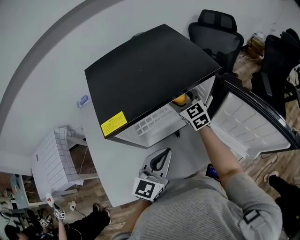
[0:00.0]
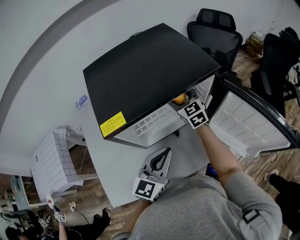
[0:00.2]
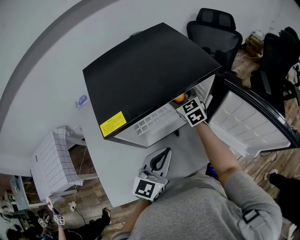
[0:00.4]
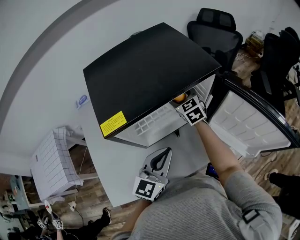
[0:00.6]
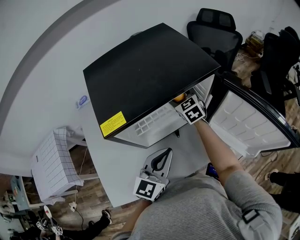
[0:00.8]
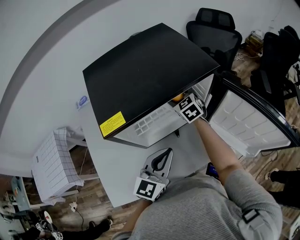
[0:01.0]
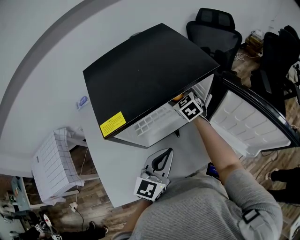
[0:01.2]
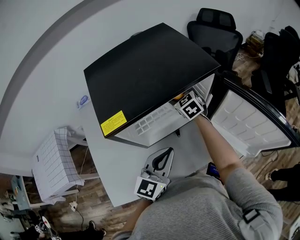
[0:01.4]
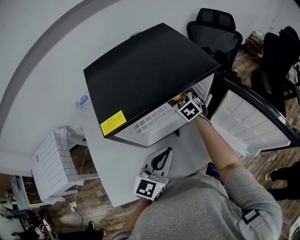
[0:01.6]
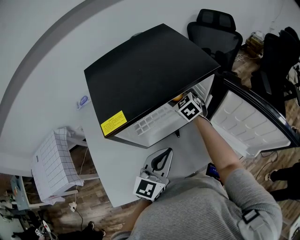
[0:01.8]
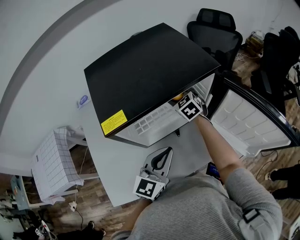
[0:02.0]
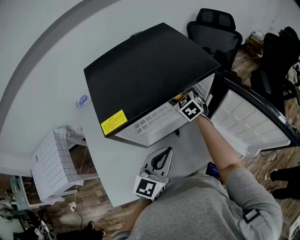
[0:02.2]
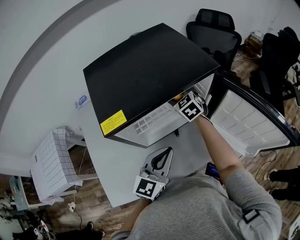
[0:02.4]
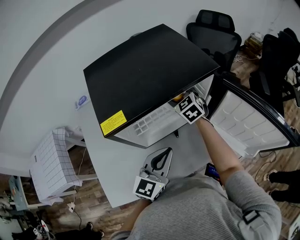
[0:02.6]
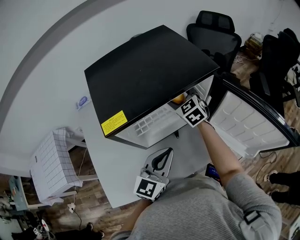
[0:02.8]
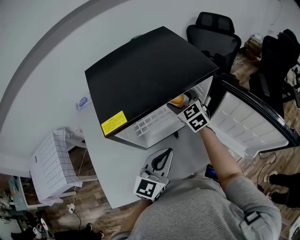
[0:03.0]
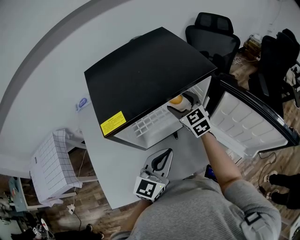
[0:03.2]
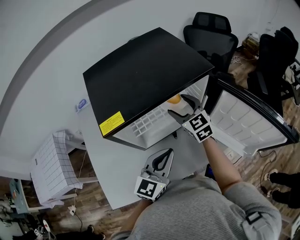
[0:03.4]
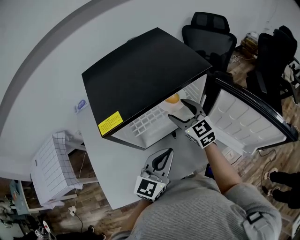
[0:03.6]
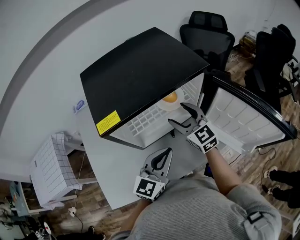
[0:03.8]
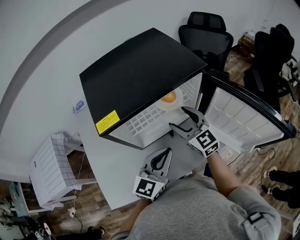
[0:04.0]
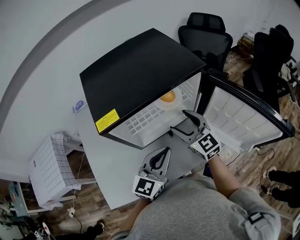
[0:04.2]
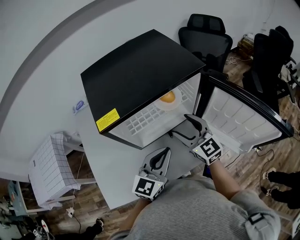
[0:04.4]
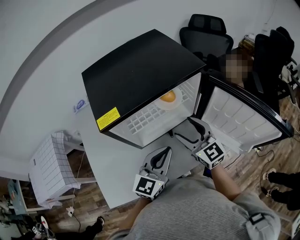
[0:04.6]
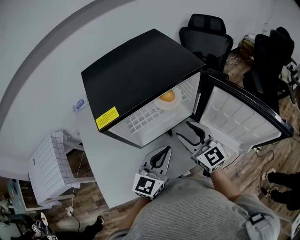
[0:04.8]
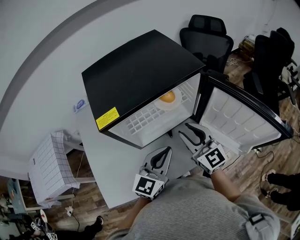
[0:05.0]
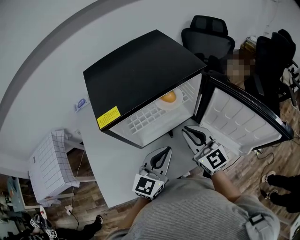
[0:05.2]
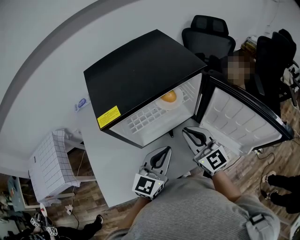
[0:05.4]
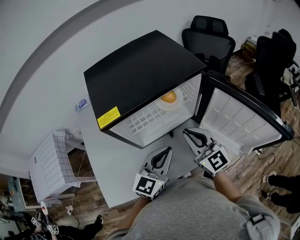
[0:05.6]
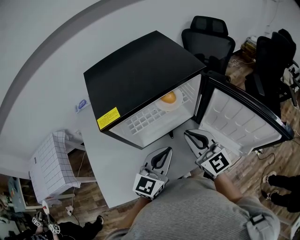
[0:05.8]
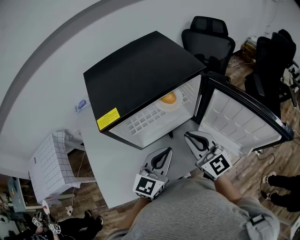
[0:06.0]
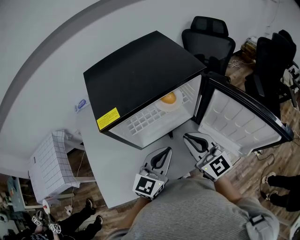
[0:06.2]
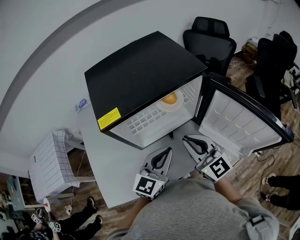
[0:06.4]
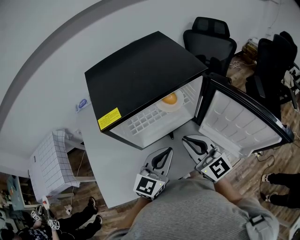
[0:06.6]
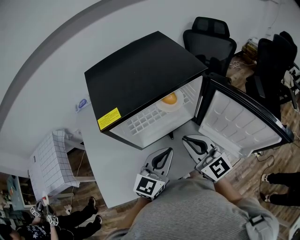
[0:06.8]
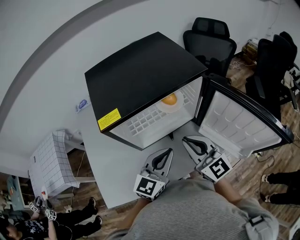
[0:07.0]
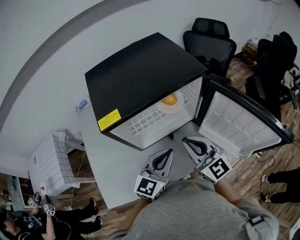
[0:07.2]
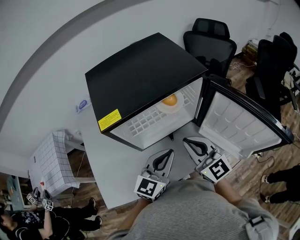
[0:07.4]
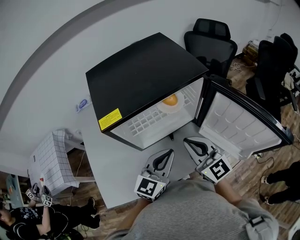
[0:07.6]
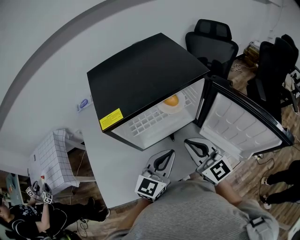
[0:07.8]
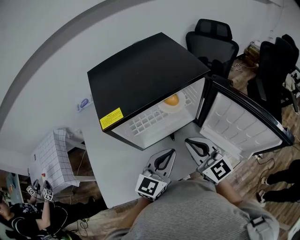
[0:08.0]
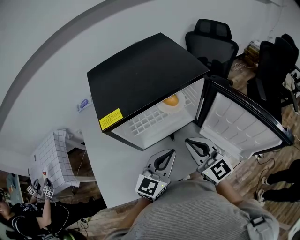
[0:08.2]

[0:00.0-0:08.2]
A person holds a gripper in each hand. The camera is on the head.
0:00.0 to 0:01.6: The right gripper changes place by approximately 5 cm.
0:01.6 to 0:03.2: The right gripper shifts some 10 cm upward and backward.
0:03.2 to 0:05.0: The right gripper is displaced backward by roughly 15 cm, rotates roughly 20 degrees, and closes its fingers.
0:05.0 to 0:06.6: The right gripper closes its fingers.
0:06.6 to 0:08.2: Both grippers stay about where they are.

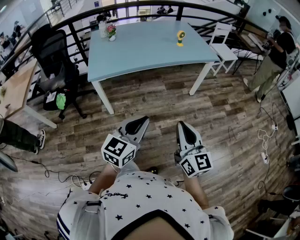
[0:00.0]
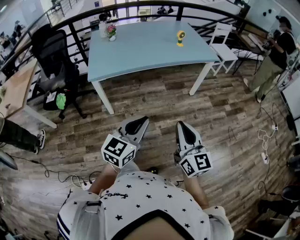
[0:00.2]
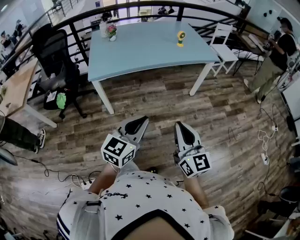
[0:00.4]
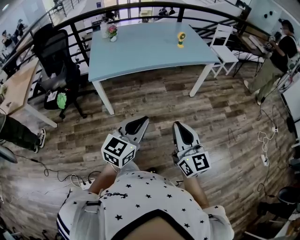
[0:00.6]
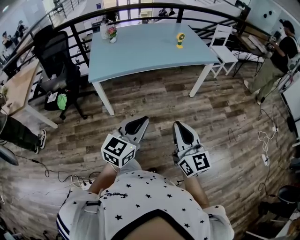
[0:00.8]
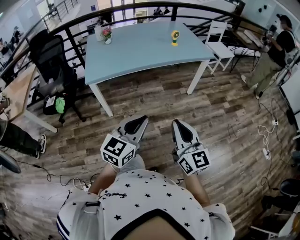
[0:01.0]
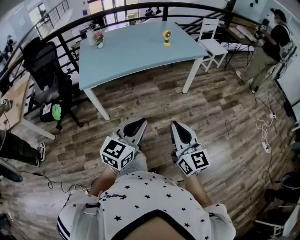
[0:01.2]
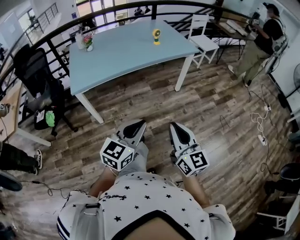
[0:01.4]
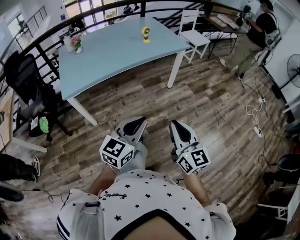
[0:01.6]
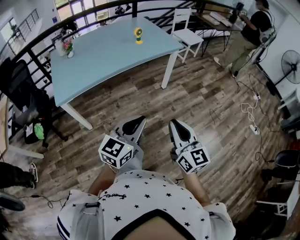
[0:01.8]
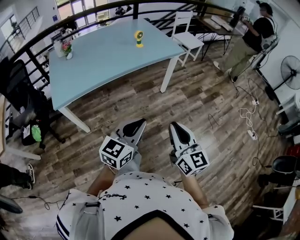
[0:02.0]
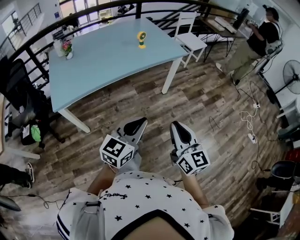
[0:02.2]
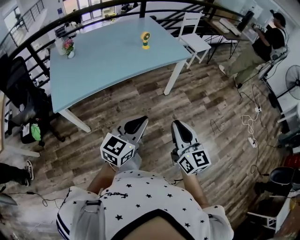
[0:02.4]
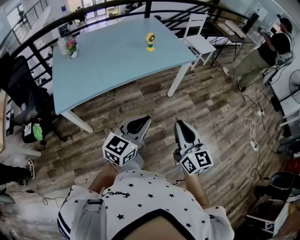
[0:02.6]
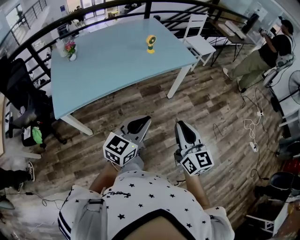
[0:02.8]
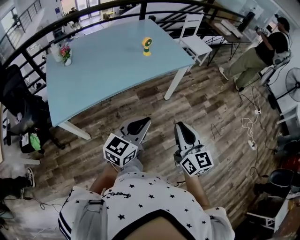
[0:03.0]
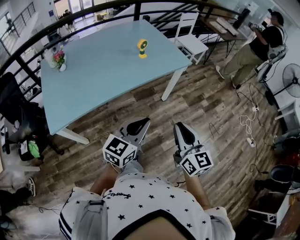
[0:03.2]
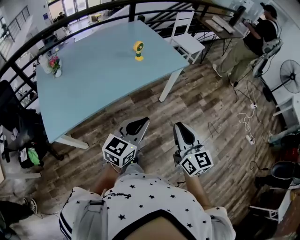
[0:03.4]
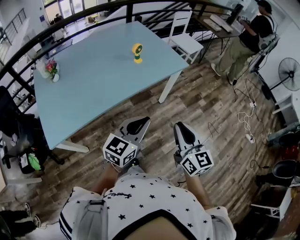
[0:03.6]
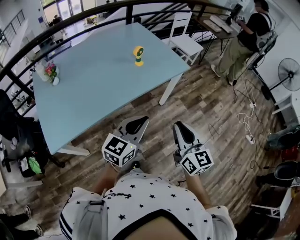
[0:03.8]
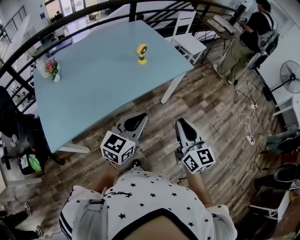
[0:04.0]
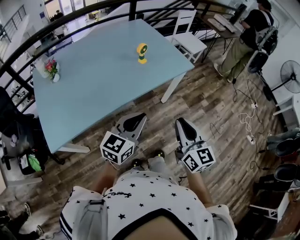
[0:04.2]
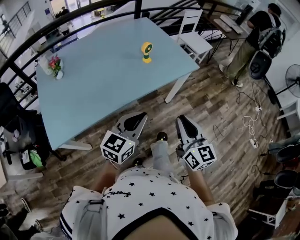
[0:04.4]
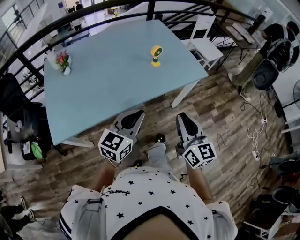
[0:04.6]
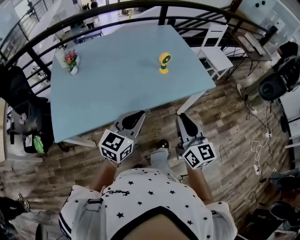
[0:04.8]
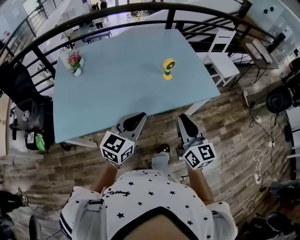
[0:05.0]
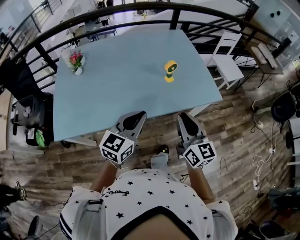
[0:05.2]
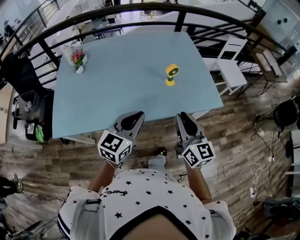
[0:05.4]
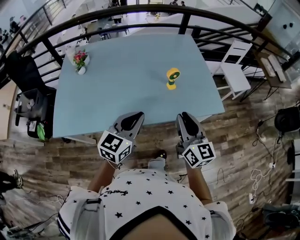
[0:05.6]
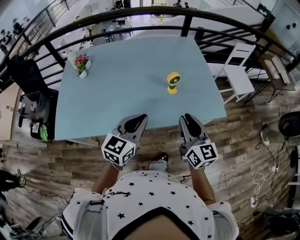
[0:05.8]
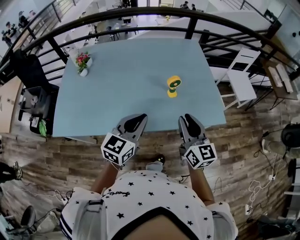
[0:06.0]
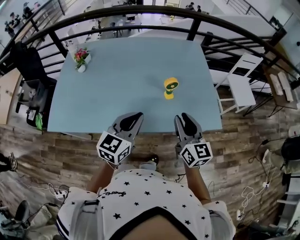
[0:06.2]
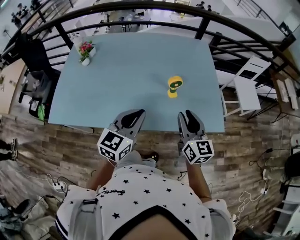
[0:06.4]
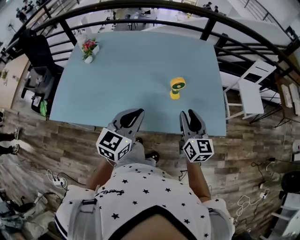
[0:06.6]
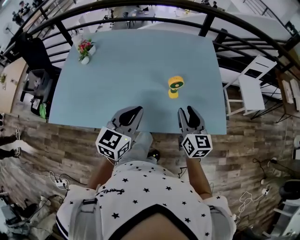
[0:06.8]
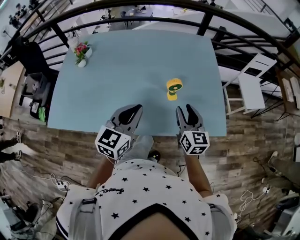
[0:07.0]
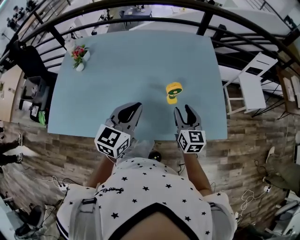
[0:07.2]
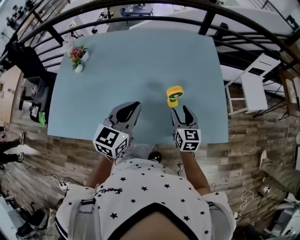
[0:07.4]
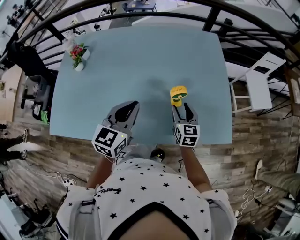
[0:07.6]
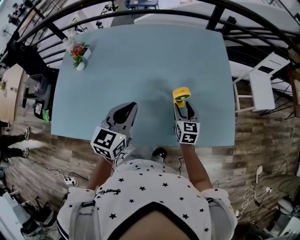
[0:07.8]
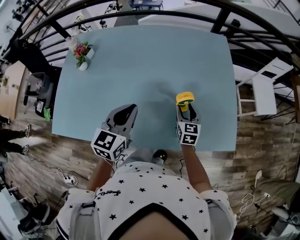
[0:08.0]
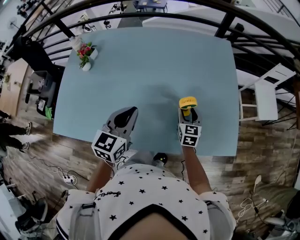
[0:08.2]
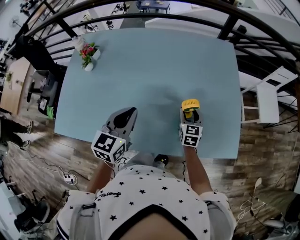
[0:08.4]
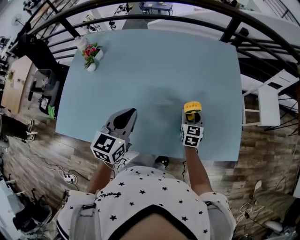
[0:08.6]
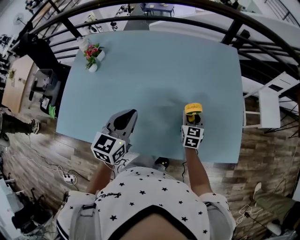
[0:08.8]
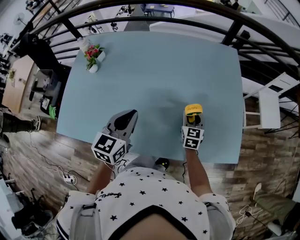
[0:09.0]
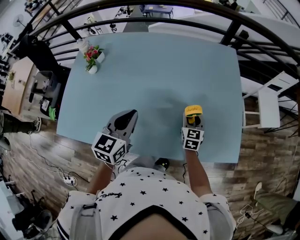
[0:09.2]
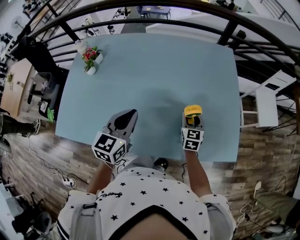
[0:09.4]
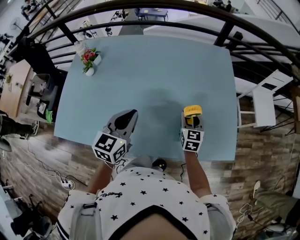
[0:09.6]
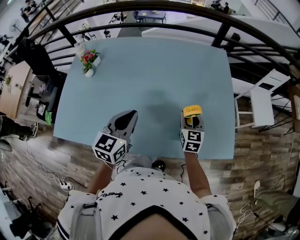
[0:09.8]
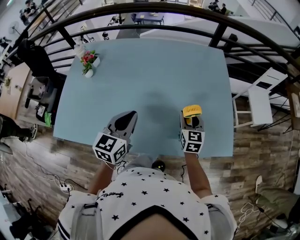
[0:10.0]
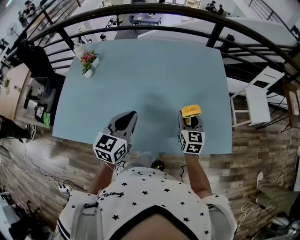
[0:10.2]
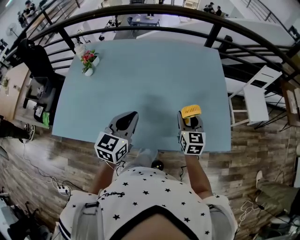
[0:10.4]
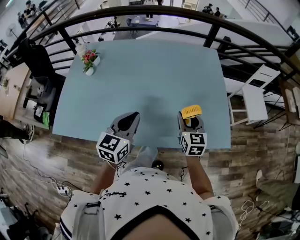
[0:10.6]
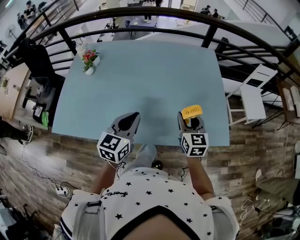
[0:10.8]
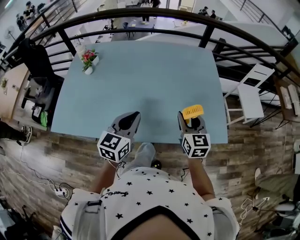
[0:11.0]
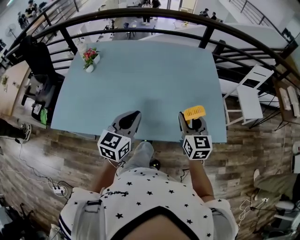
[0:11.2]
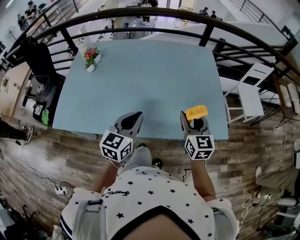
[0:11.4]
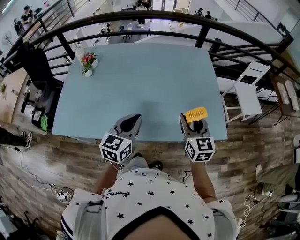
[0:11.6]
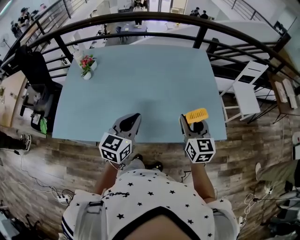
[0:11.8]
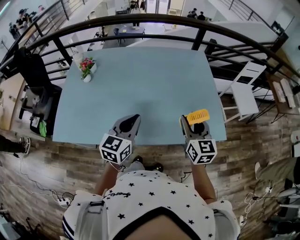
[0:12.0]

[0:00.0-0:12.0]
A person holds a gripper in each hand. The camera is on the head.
0:00.0 to 0:01.6: Both grippers travel together to the right, roughly 10 cm.
0:01.6 to 0:03.0: Both grippers move forward, some 20 cm.
0:03.0 to 0:04.4: The right gripper travels forward by approximately 15 cm, while the left gripper moves forward and to the left, about 15 cm.
0:04.4 to 0:06.0: The right gripper shifts by about 30 cm, and turns by about 20 degrees; the left gripper changes place by about 20 cm, and rotates about 30 degrees.
0:06.0 to 0:07.6: The left gripper travels forward by some 15 cm; the right gripper shifts approximately 25 cm forward and downward, rotates some 20 degrees, and opens.
0:07.6 to 0:09.0: The left gripper shifts about 5 cm to the left. The right gripper is displaced forward by roughly 5 cm.
0:09.0 to 0:10.4: The left gripper changes place by roughly 5 cm, while the right gripper is displaced upward and backward by roughly 15 cm.
0:10.4 to 0:12.0: The right gripper is displaced upward and backward by some 15 cm.

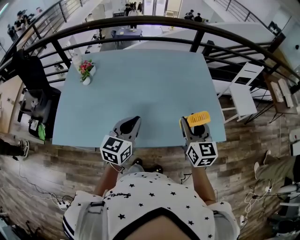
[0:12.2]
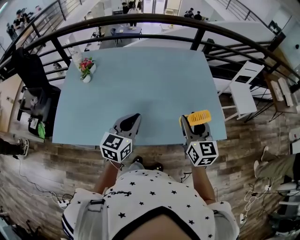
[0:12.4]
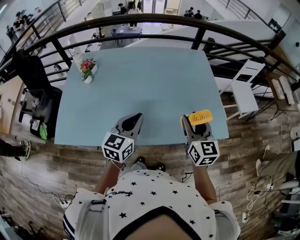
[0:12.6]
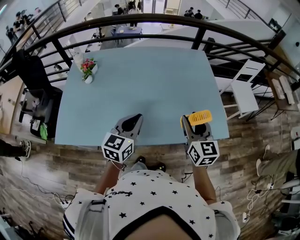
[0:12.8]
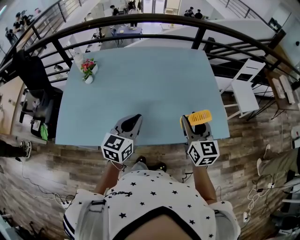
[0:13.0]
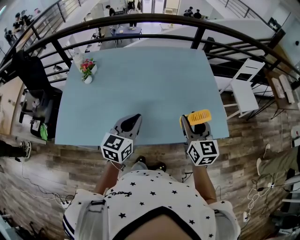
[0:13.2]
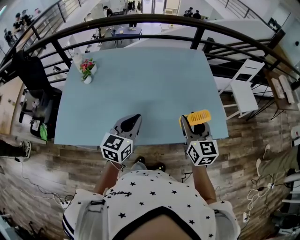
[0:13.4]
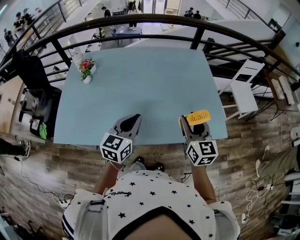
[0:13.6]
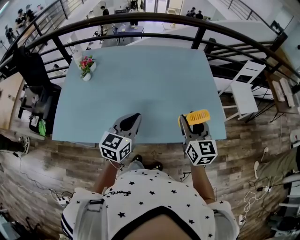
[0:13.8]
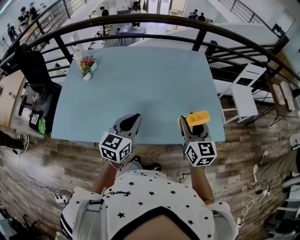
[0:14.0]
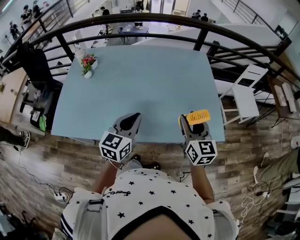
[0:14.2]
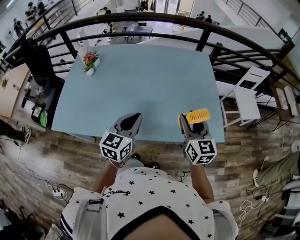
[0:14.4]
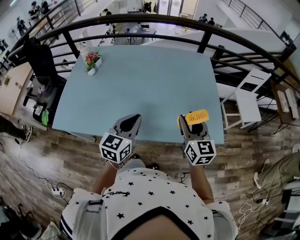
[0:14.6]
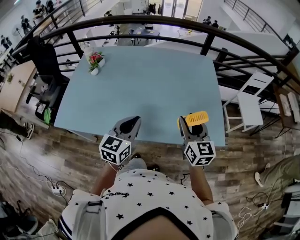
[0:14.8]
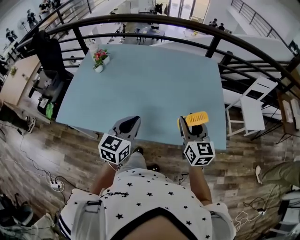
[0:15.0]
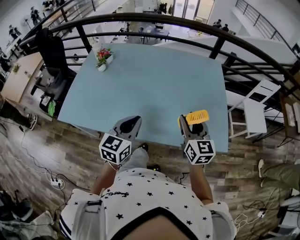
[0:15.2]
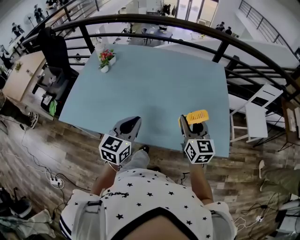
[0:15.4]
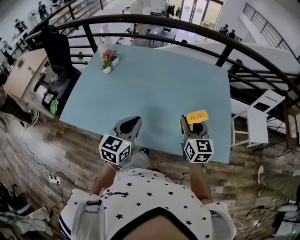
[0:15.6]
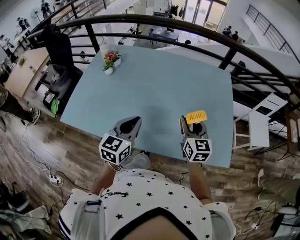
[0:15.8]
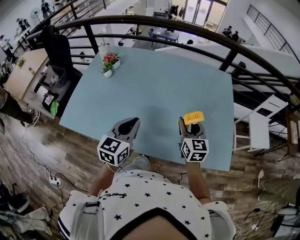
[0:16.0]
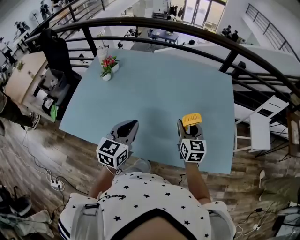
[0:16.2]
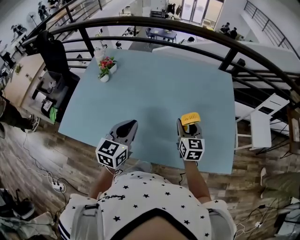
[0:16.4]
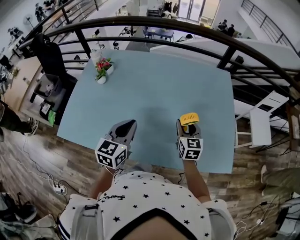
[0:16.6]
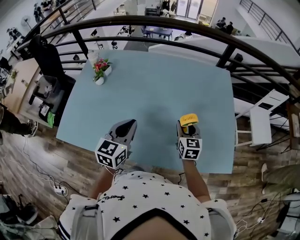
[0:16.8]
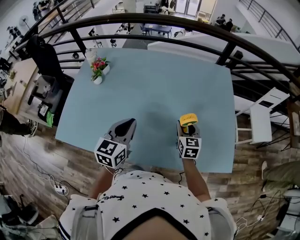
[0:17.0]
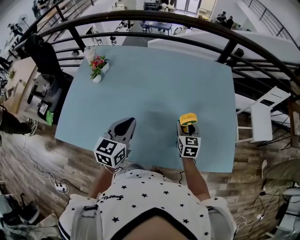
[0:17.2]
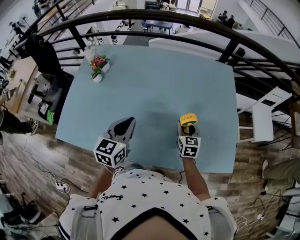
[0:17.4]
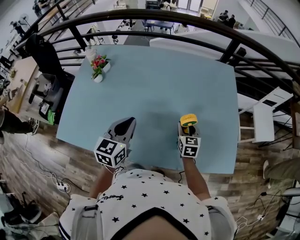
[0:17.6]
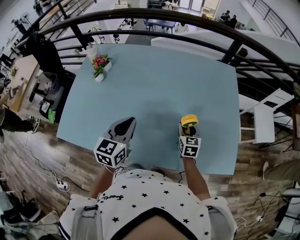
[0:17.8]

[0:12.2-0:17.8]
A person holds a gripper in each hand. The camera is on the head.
0:12.2 to 0:15.0: The grippers move only a little.
0:15.0 to 0:16.4: The left gripper goes about 10 cm forward and to the left, while the right gripper travels forward and downward by some 15 cm.
0:16.4 to 0:17.8: The right gripper moves downward, roughly 10 cm; the left gripper shifts by roughly 5 cm.
